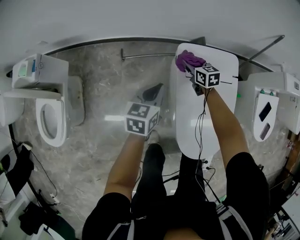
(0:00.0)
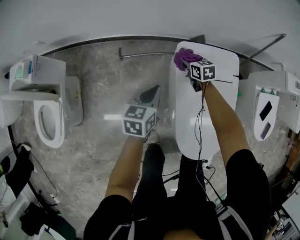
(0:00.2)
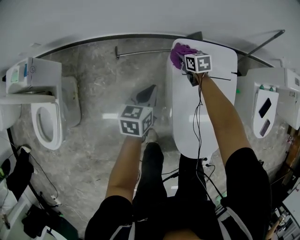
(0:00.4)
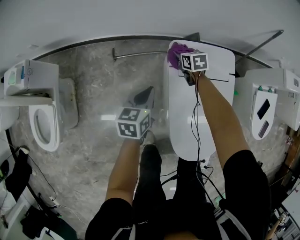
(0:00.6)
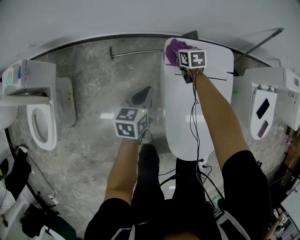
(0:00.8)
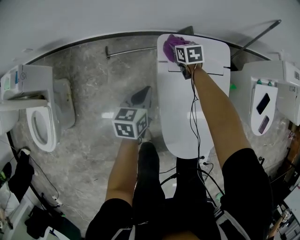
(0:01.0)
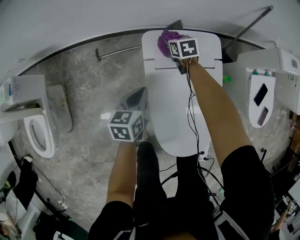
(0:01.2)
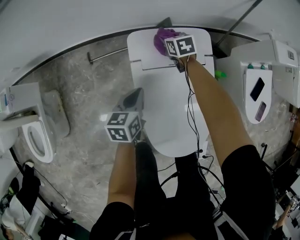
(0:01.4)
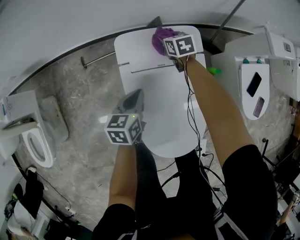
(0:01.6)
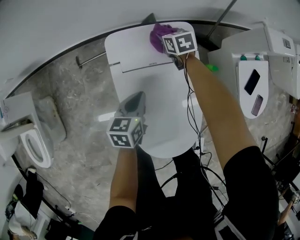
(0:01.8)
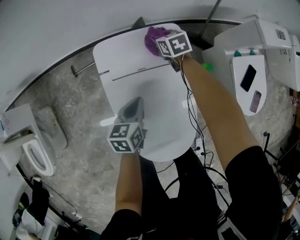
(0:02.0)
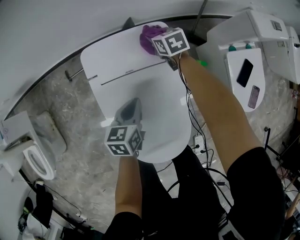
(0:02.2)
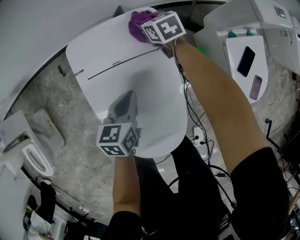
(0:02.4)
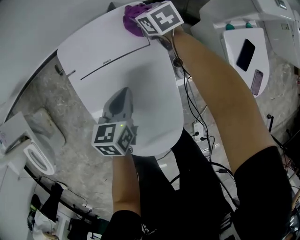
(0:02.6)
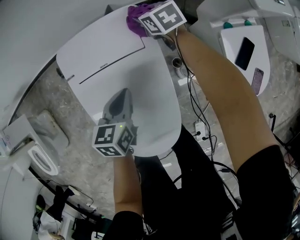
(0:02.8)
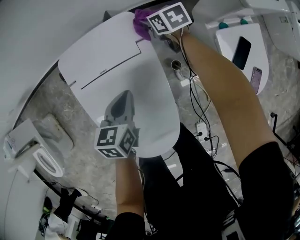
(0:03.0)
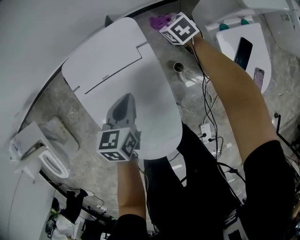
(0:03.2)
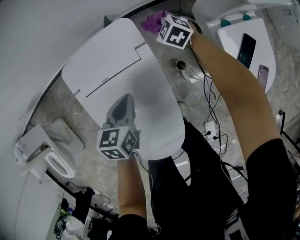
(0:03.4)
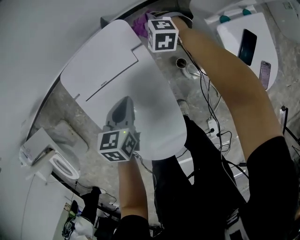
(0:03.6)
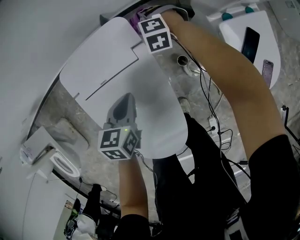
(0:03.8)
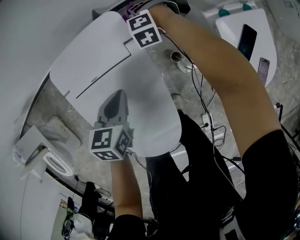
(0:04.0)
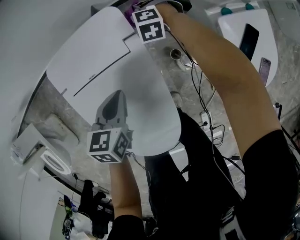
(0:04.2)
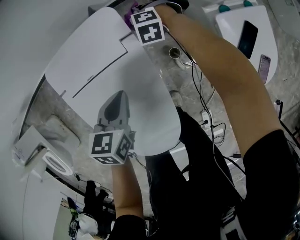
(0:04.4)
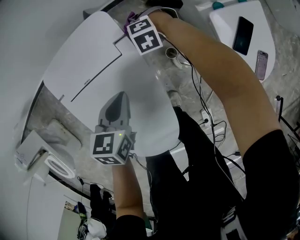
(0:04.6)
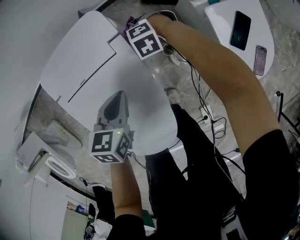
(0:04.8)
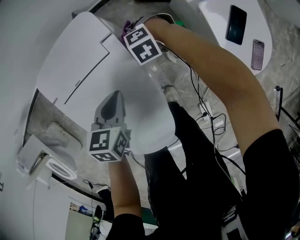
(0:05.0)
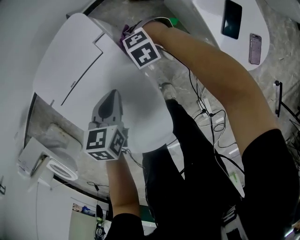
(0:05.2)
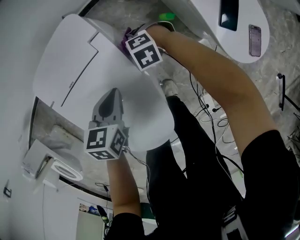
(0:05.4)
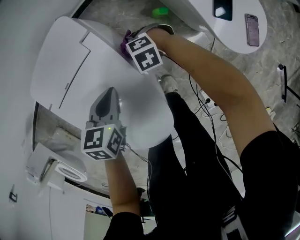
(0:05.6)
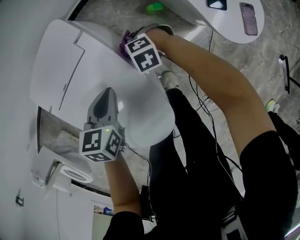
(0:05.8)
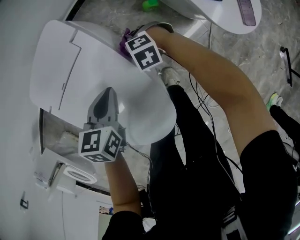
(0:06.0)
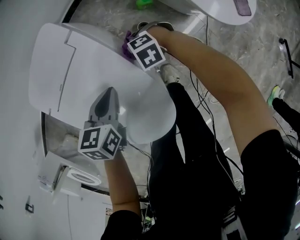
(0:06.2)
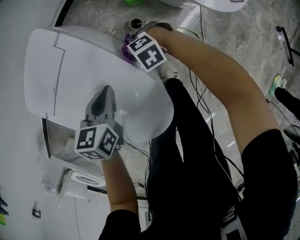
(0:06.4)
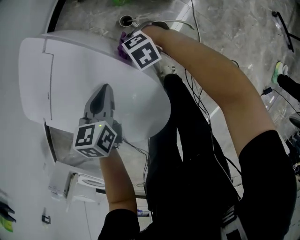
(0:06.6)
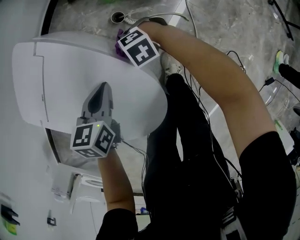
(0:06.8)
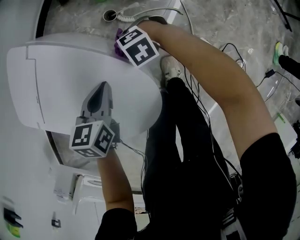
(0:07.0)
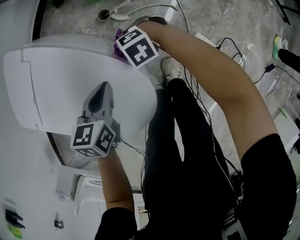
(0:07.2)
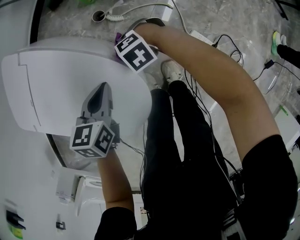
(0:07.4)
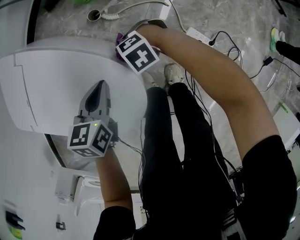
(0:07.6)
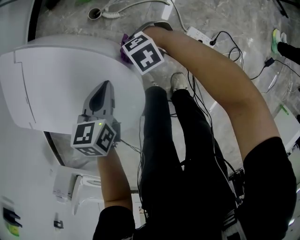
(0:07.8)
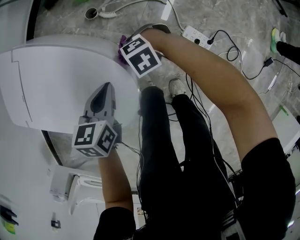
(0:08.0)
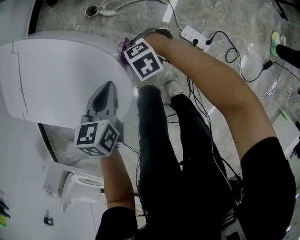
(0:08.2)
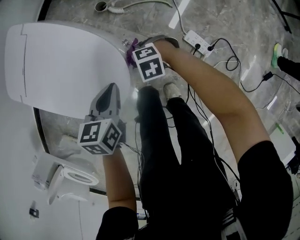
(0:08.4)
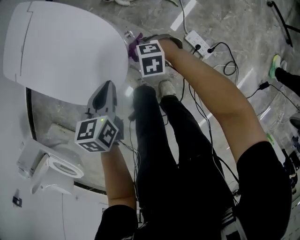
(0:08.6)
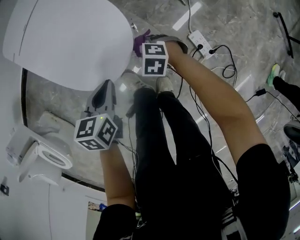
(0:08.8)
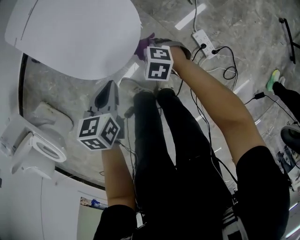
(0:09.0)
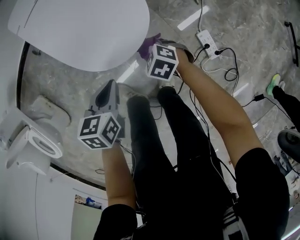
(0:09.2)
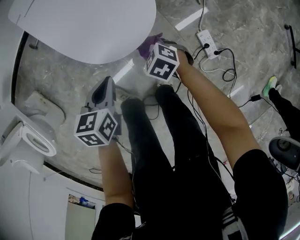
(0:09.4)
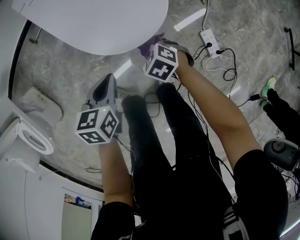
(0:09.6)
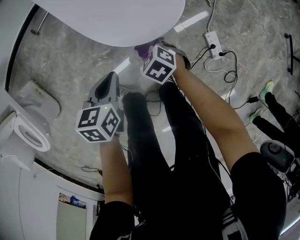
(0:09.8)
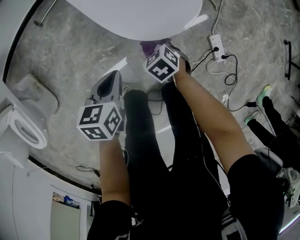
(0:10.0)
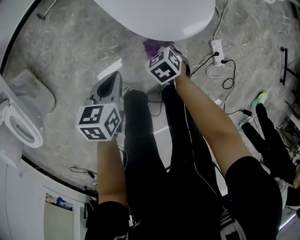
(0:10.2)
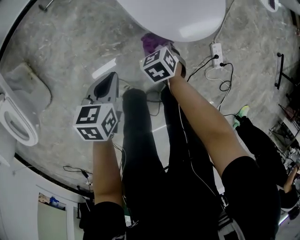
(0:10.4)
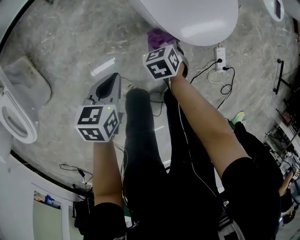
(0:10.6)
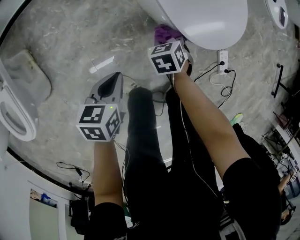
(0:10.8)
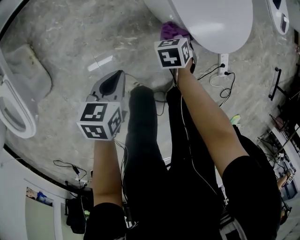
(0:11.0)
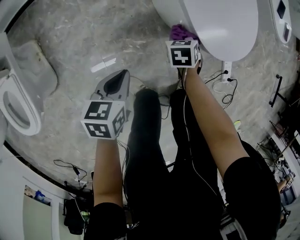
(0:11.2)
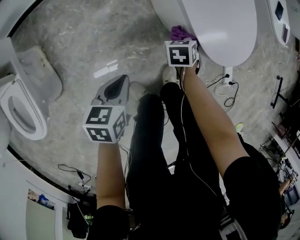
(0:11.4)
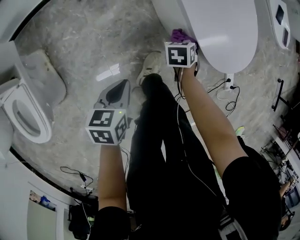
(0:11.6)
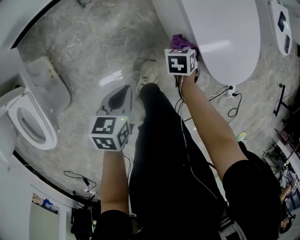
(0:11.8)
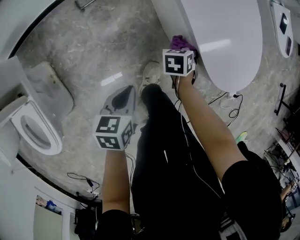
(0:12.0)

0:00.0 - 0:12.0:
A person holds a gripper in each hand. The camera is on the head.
0:00.0 - 0:01.6: The left gripper goes about 20 cm to the right and downward. Meanwhile the right gripper goes roughly 20 cm to the right.
0:01.6 - 0:03.0: Both grippers travel together to the right, some 20 cm.
0:03.0 - 0:04.4: The right gripper moves downward, about 10 cm, and rotates around the line of its fingers by some 70 degrees, counterclockwise from behind.
0:04.4 - 0:06.0: The left gripper changes place by about 10 cm. Meanwhile the right gripper shifts by approximately 25 cm.
0:06.0 - 0:07.6: The right gripper moves some 25 cm; the left gripper shifts by about 20 cm, and swivels some 20 degrees.
0:07.6 - 0:09.0: The left gripper shifts by roughly 25 cm, and changes its angle by approximately 30 degrees, while the right gripper changes place by some 20 cm.
0:09.0 - 0:10.4: Both grippers travel together to the left, about 25 cm. The right gripper rotates roughly 30 degrees.
0:10.4 - 0:12.0: The right gripper goes approximately 20 cm to the left and forward, and turns by approximately 30 degrees. Meanwhile the left gripper goes some 20 cm to the left.

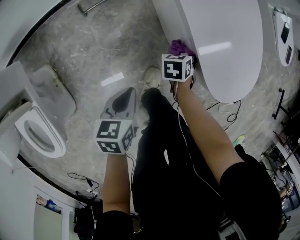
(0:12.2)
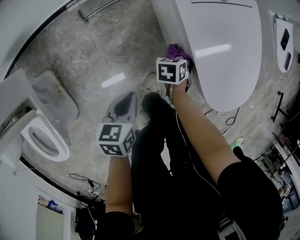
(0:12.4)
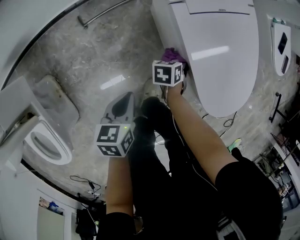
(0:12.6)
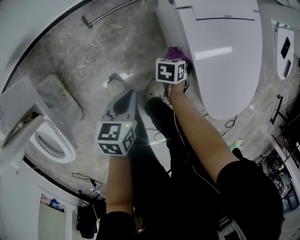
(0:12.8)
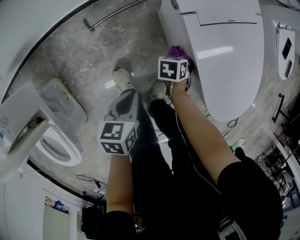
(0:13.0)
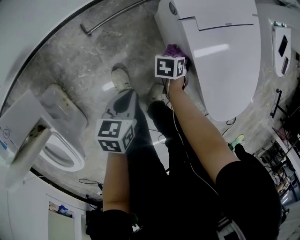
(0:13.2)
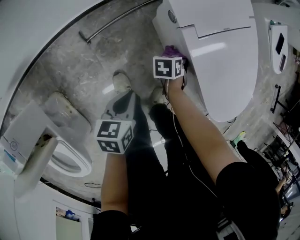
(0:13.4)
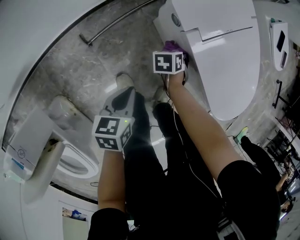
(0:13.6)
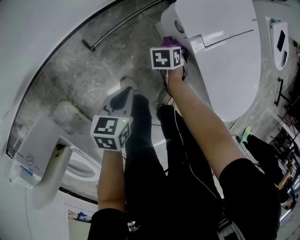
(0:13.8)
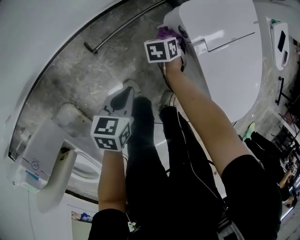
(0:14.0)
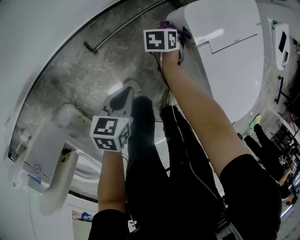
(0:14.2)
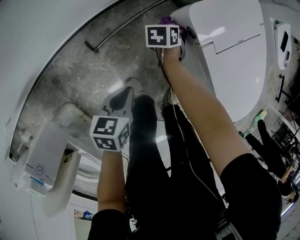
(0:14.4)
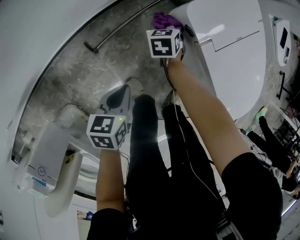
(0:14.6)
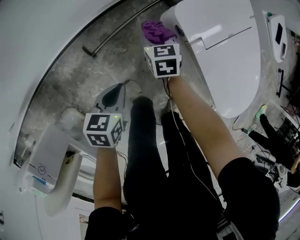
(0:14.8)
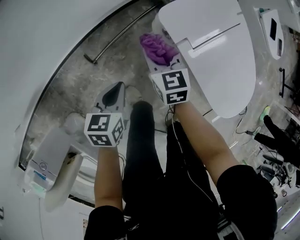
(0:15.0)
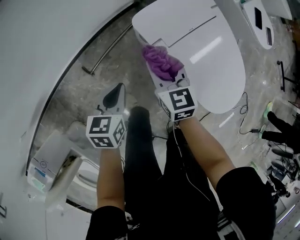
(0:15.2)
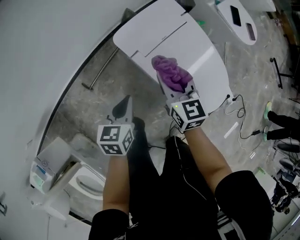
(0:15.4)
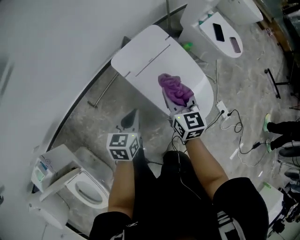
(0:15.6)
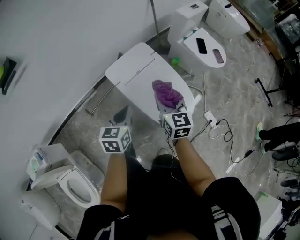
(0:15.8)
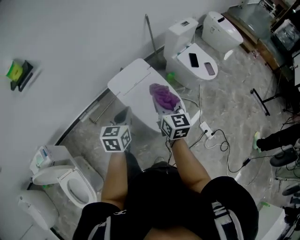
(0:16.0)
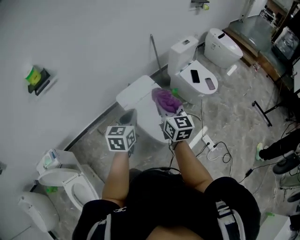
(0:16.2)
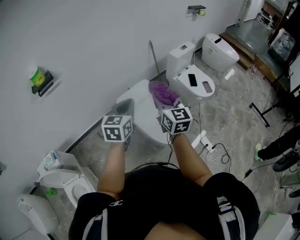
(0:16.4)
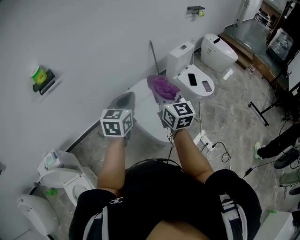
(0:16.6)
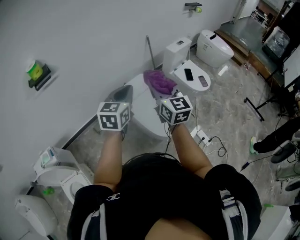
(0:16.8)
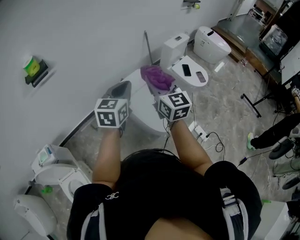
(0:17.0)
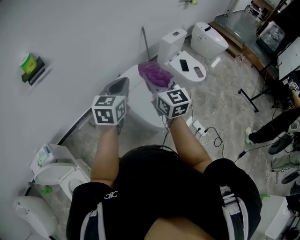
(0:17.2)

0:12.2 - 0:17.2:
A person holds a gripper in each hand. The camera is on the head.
0:12.2 - 0:13.8: The left gripper shifts by approximately 30 cm. Meanwhile the right gripper shifts by some 25 cm.
0:13.8 - 0:15.6: The right gripper moves upward, roughly 40 cm, and tips its fingers upward by approximately 50 degrees. Meanwhile the left gripper moves upward, some 25 cm, and swivels about 20 degrees.
0:15.6 - 0:17.2: The two grippers go some 40 cm upward. The left gripper turns by some 30 degrees. The right gripper swivels roughly 20 degrees.

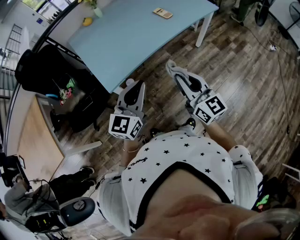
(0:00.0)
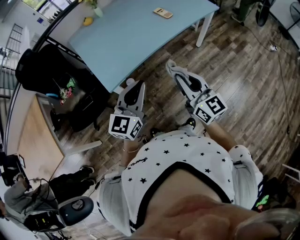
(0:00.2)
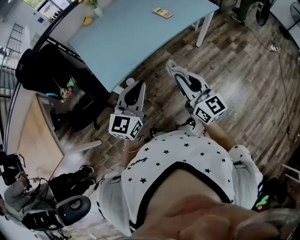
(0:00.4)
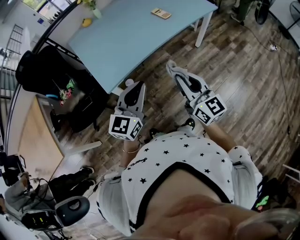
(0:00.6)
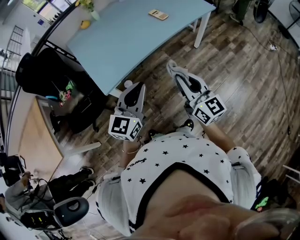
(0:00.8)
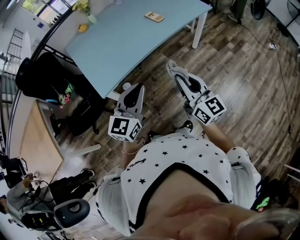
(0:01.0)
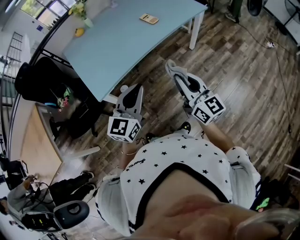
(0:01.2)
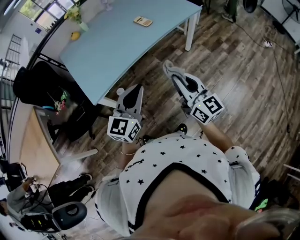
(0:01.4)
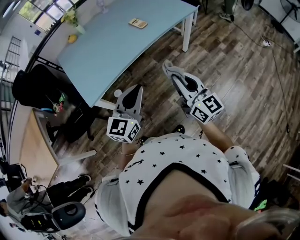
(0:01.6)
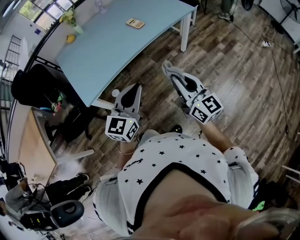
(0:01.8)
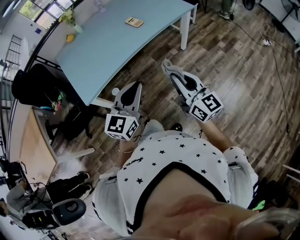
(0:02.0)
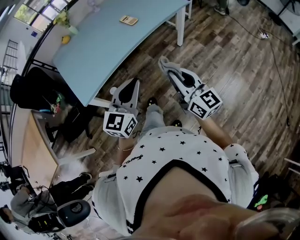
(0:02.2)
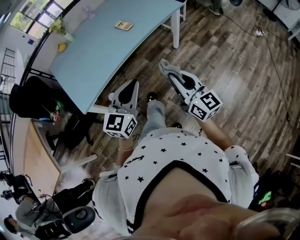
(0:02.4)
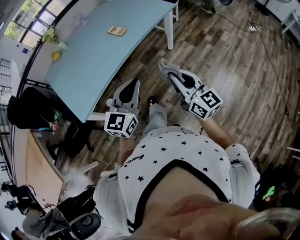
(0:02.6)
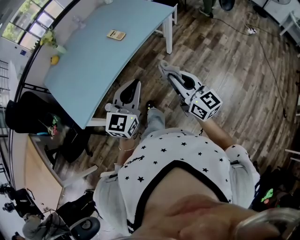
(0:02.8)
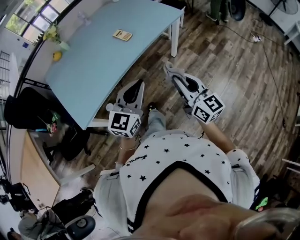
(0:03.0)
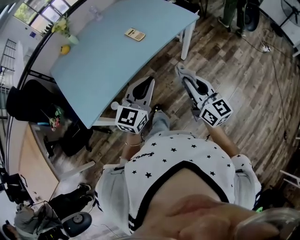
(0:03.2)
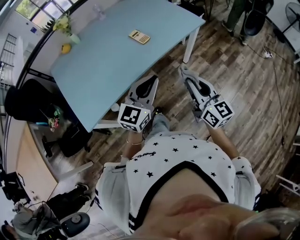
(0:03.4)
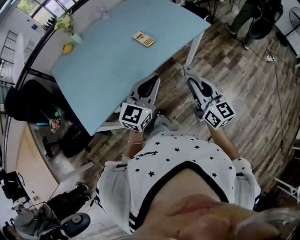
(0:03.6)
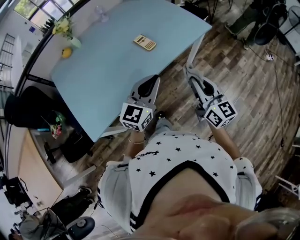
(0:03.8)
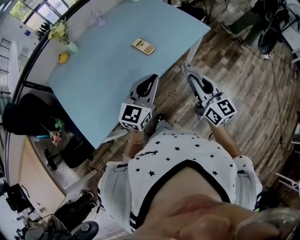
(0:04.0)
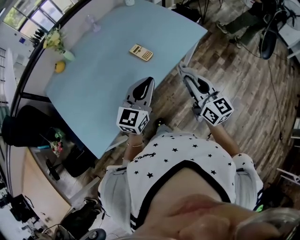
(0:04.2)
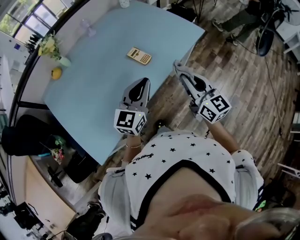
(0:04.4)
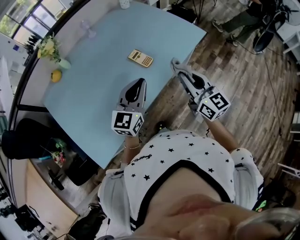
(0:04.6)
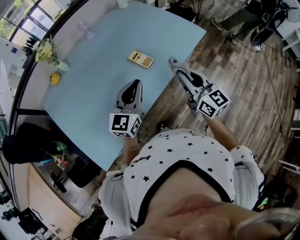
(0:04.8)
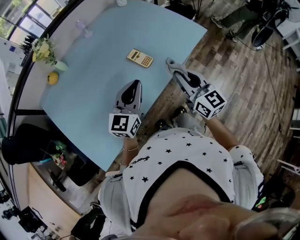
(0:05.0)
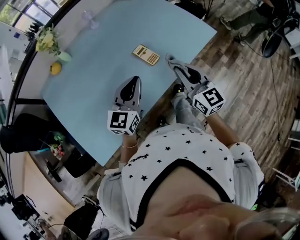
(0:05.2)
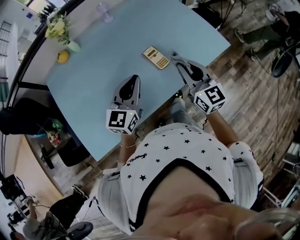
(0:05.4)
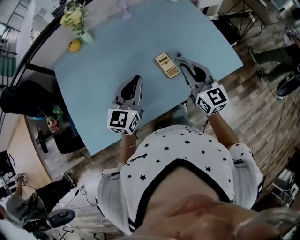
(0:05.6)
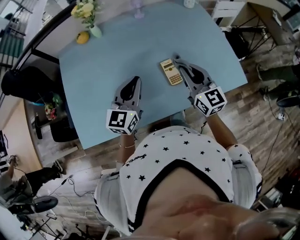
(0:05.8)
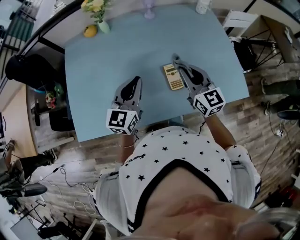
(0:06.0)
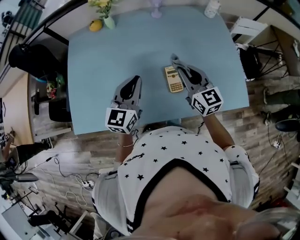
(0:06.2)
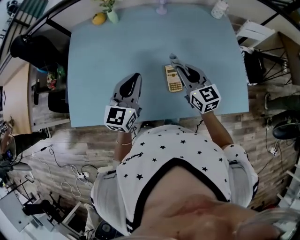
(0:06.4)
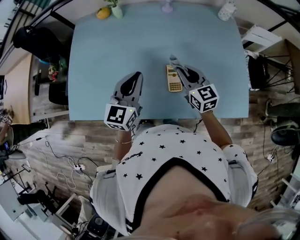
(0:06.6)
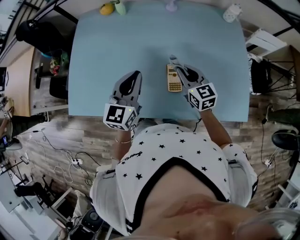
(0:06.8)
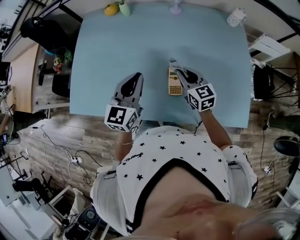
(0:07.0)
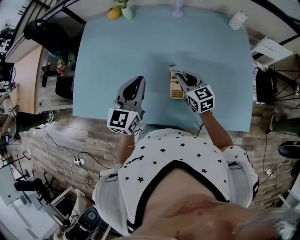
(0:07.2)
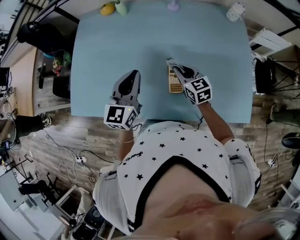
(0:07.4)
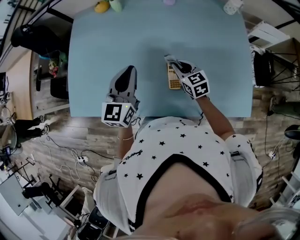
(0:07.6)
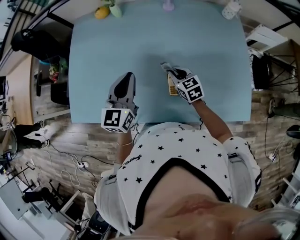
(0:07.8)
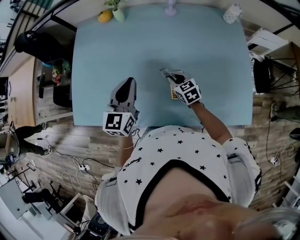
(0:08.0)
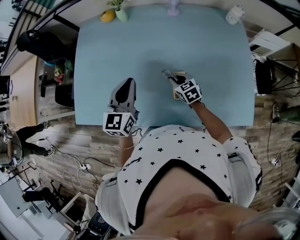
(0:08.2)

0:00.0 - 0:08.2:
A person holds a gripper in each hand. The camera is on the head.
0:00.0 - 0:01.6: The two grippers go some 15 cm to the right.
0:01.6 - 0:03.2: The right gripper moves forward and to the right, roughly 15 cm; the left gripper goes some 15 cm forward.
0:03.2 - 0:05.0: The two grippers go some 30 cm forward and to the left.
0:05.0 - 0:06.6: The left gripper ends up roughly 15 cm from where it was, and turns by approximately 50 degrees. Meanwhile the right gripper changes place by approximately 30 cm, and changes its angle by about 50 degrees.
0:06.6 - 0:08.2: The left gripper moves roughly 5 cm. Meanwhile the right gripper heads downward, covering roughly 15 cm, and turns by roughly 30 degrees.
